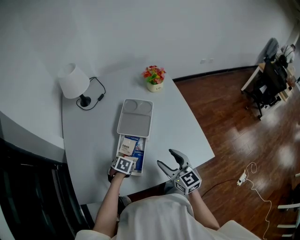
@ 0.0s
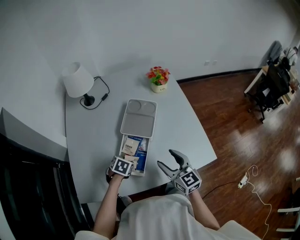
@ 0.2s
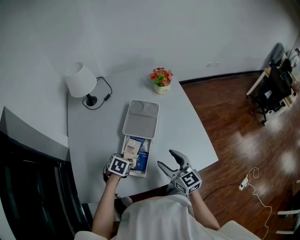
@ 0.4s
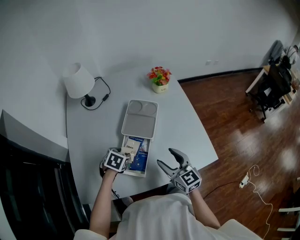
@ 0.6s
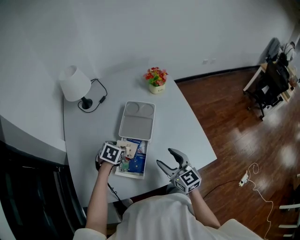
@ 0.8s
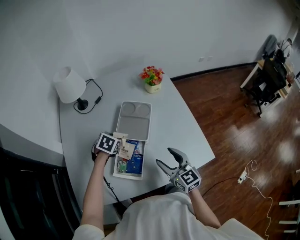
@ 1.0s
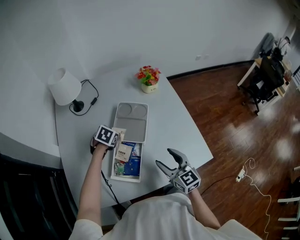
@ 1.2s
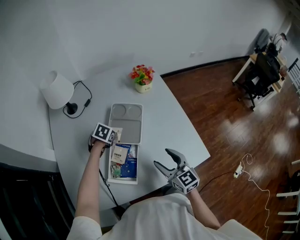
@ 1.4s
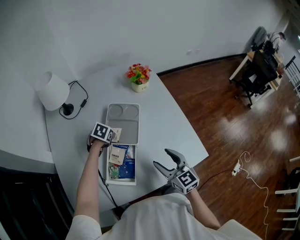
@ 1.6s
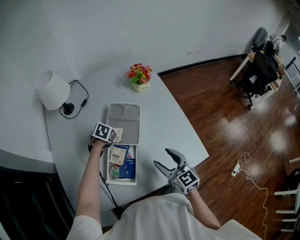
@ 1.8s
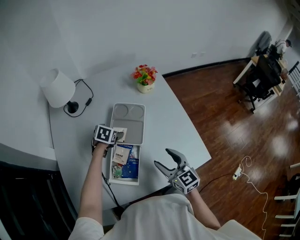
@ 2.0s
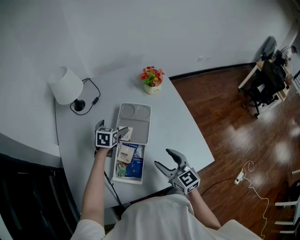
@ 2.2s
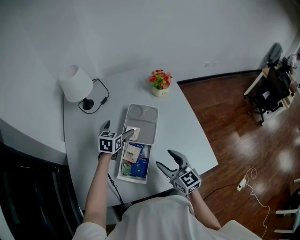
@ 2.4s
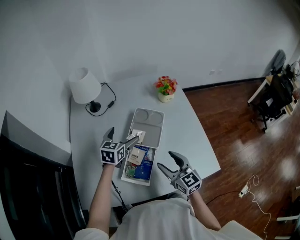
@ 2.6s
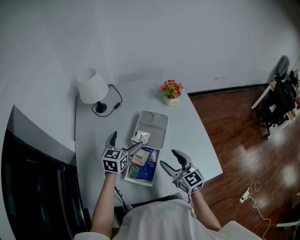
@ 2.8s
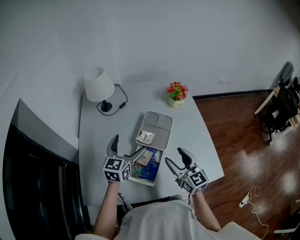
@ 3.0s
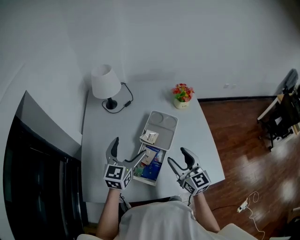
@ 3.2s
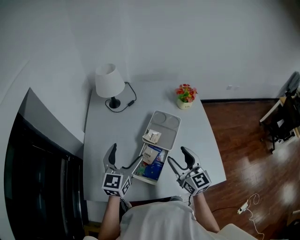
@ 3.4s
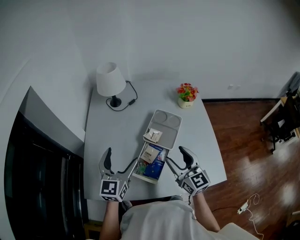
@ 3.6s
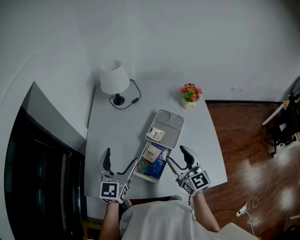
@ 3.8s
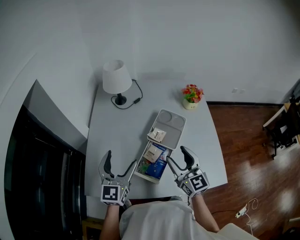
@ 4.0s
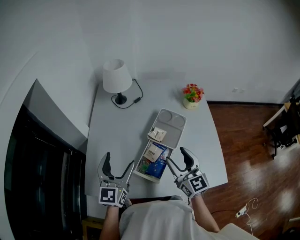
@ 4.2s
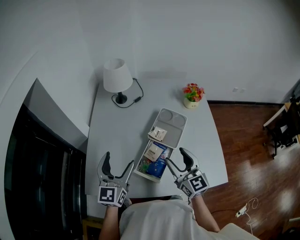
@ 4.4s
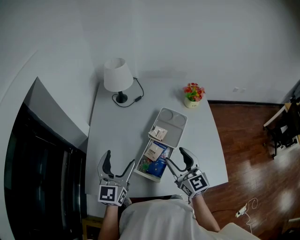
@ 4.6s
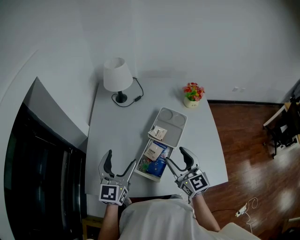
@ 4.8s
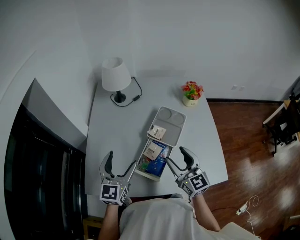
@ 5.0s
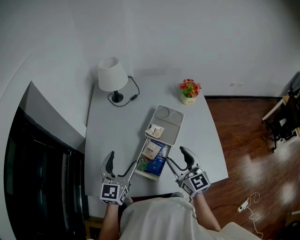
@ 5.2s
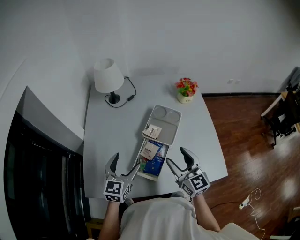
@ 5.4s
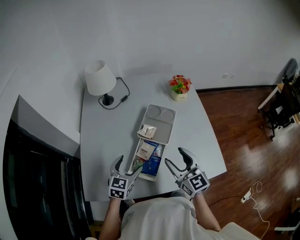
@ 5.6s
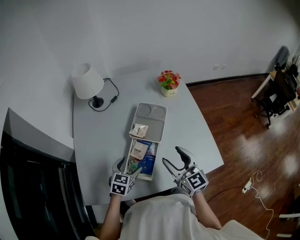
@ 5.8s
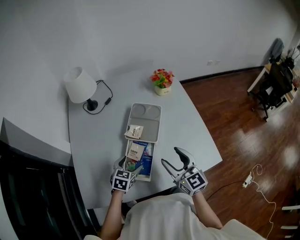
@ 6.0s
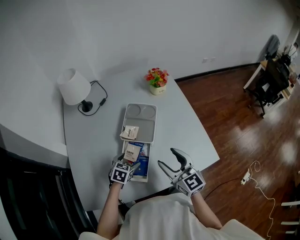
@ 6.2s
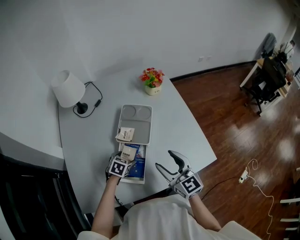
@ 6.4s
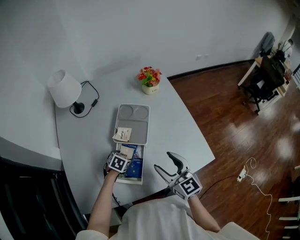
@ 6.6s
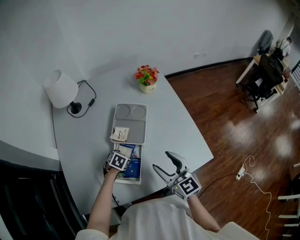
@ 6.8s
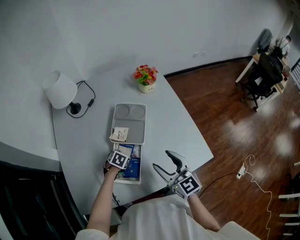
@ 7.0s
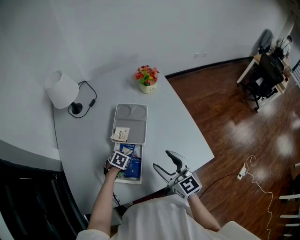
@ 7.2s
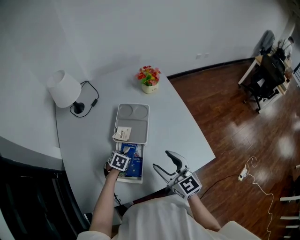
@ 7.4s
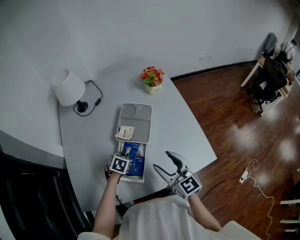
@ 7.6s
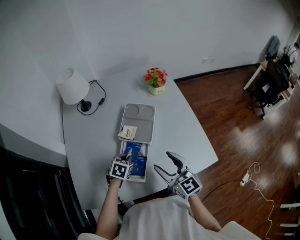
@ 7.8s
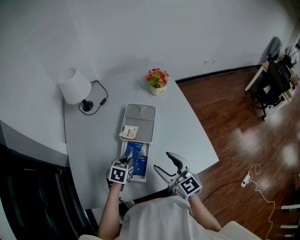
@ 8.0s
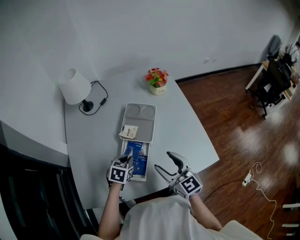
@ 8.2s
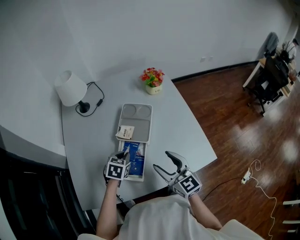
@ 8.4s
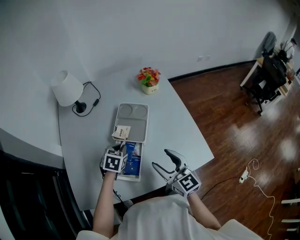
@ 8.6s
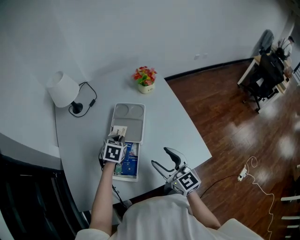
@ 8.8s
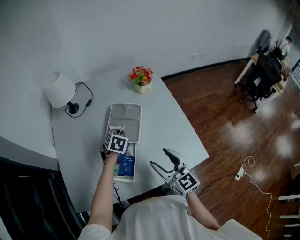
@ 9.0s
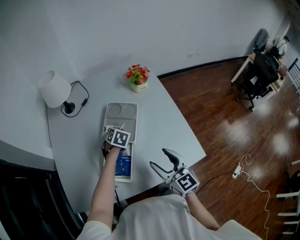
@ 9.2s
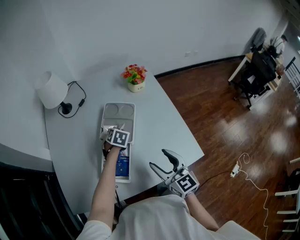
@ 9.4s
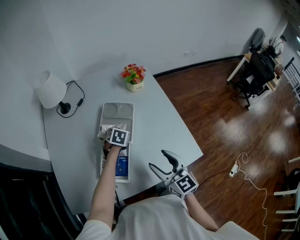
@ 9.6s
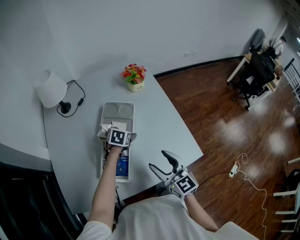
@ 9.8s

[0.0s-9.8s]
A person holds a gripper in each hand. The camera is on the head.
0.0s to 1.4s: The left gripper heads forward, covering approximately 20 cm.
1.4s to 2.8s: The left gripper heads upward and backward, covering some 20 cm, tips its fingers upward by roughly 50 degrees, and opens its fingers. The right gripper shifts approximately 5 cm to the left.
2.8s to 4.2s: The left gripper heads backward, to the left and upward, covering approximately 20 cm, and rotates roughly 30 degrees, while the right gripper heads upward, covering roughly 5 cm.
4.2s to 5.6s: The left gripper travels downward and to the right by roughly 15 cm, and rotates some 30 degrees.
5.6s to 7.0s: The right gripper is displaced to the right by about 5 cm, while the left gripper is displaced downward and forward by about 20 cm, and points its fingers about 40 degrees further downward.
7.0s to 8.4s: The left gripper is displaced upward by approximately 10 cm, swivels roughly 20 degrees, and closes up.
8.4s to 9.8s: The left gripper goes some 15 cm forward and to the right, and opens its fingers.

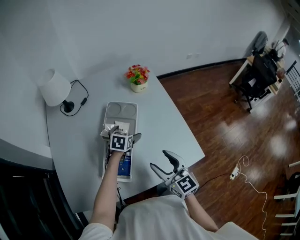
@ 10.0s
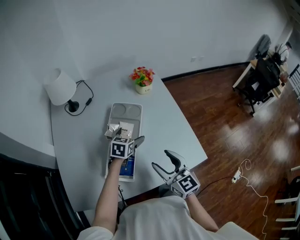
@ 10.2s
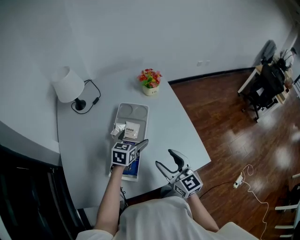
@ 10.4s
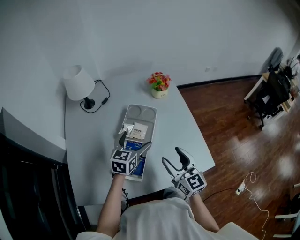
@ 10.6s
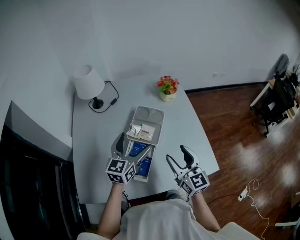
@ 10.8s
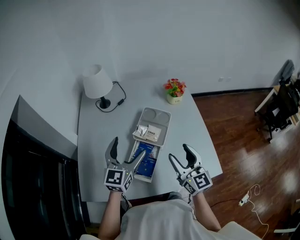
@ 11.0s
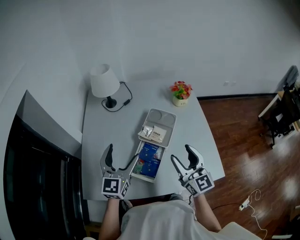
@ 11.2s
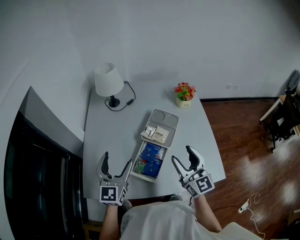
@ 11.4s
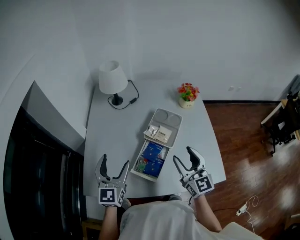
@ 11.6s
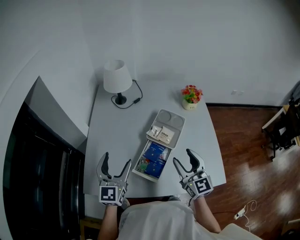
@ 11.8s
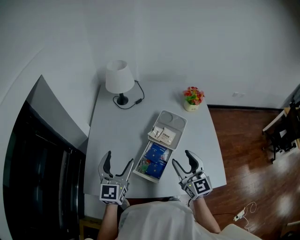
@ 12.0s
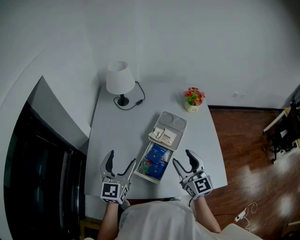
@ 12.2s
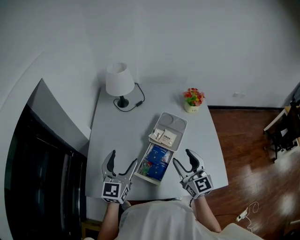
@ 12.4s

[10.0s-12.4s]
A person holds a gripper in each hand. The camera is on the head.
10.0s to 11.2s: The right gripper heads upward and to the left, covering approximately 10 cm. The left gripper moves upward, to the left and backward, some 35 cm, and points its fingers approximately 50 degrees further upward.
11.2s to 12.4s: The left gripper is displaced to the left by roughly 5 cm.

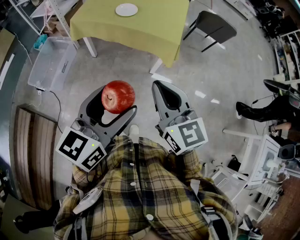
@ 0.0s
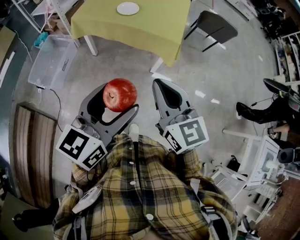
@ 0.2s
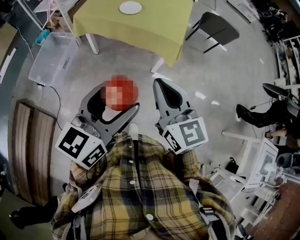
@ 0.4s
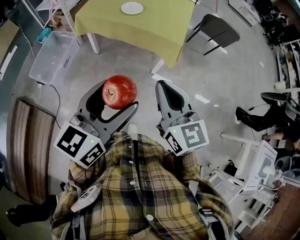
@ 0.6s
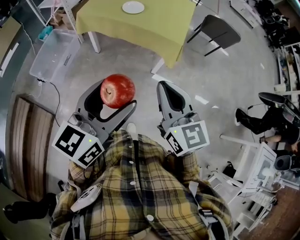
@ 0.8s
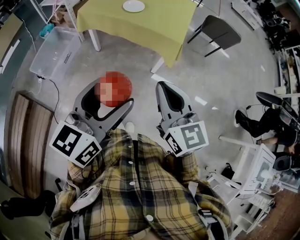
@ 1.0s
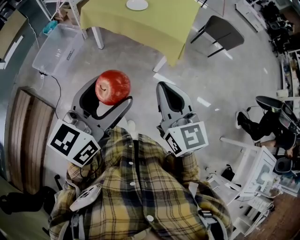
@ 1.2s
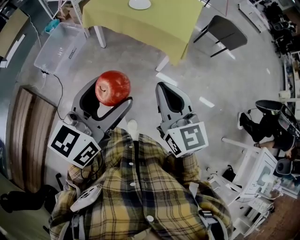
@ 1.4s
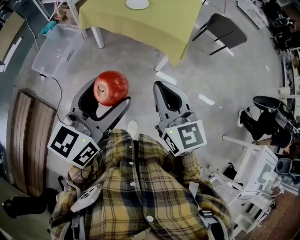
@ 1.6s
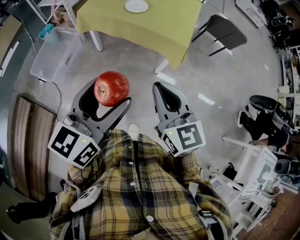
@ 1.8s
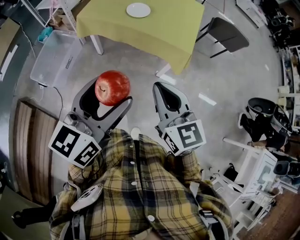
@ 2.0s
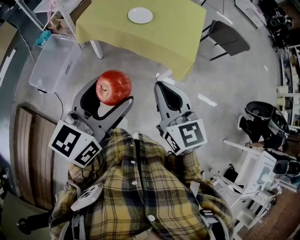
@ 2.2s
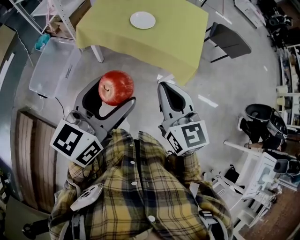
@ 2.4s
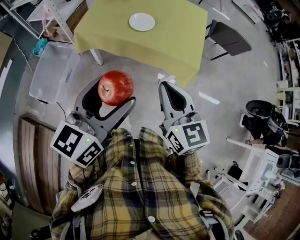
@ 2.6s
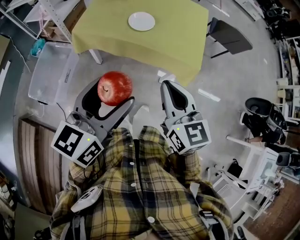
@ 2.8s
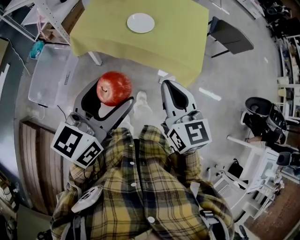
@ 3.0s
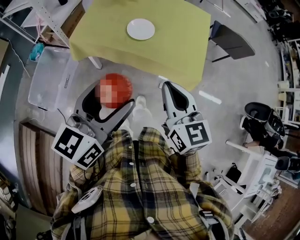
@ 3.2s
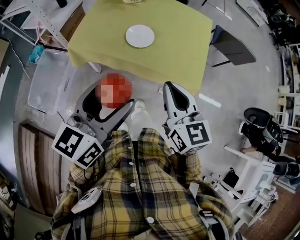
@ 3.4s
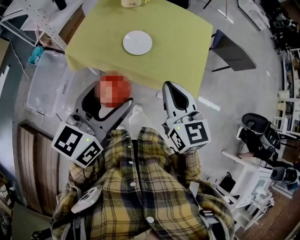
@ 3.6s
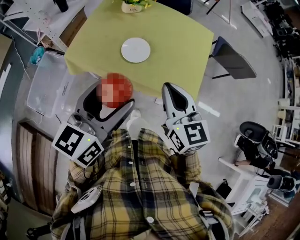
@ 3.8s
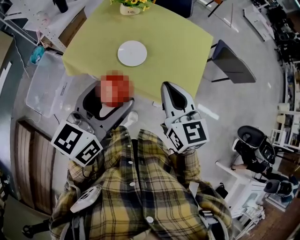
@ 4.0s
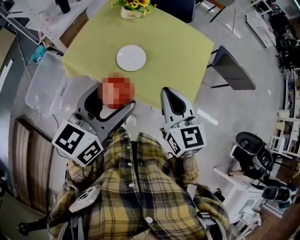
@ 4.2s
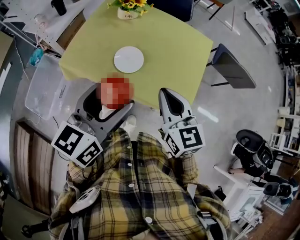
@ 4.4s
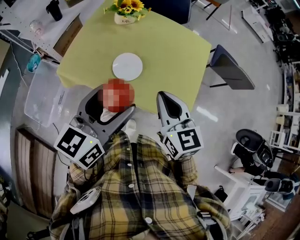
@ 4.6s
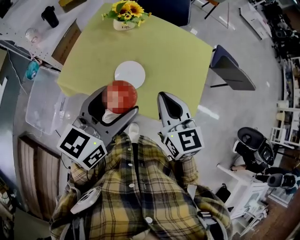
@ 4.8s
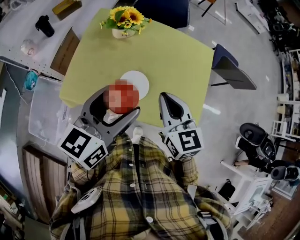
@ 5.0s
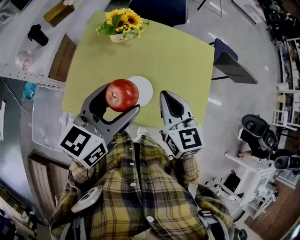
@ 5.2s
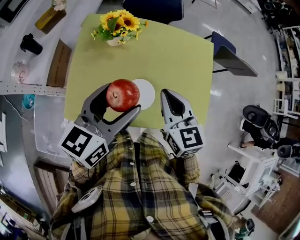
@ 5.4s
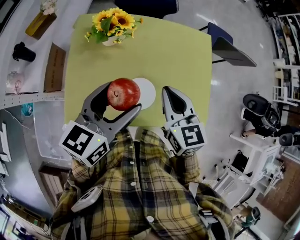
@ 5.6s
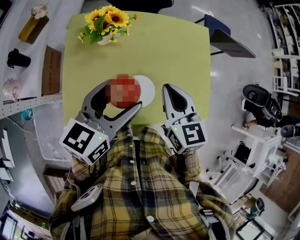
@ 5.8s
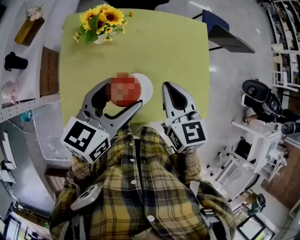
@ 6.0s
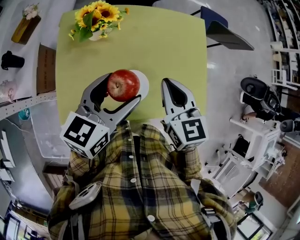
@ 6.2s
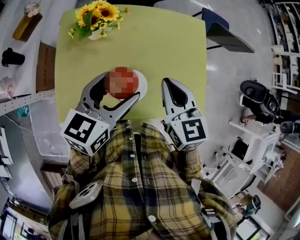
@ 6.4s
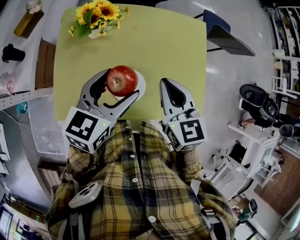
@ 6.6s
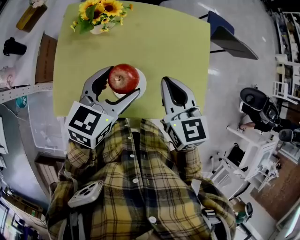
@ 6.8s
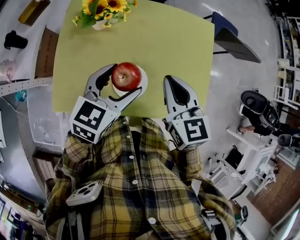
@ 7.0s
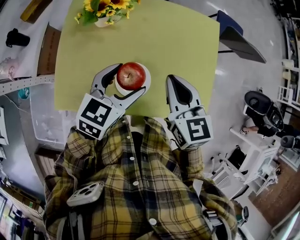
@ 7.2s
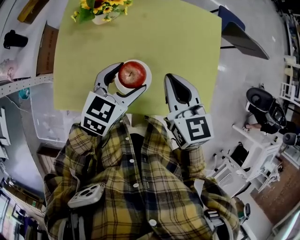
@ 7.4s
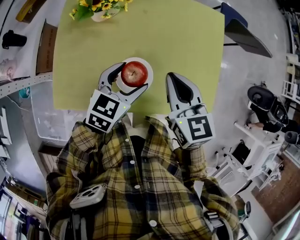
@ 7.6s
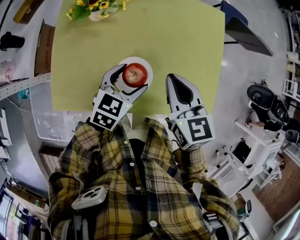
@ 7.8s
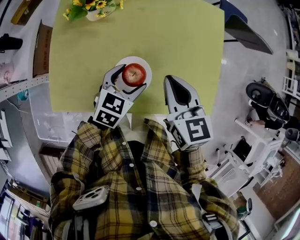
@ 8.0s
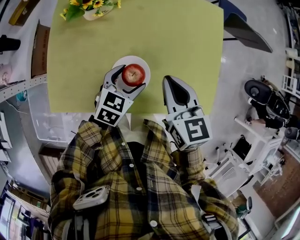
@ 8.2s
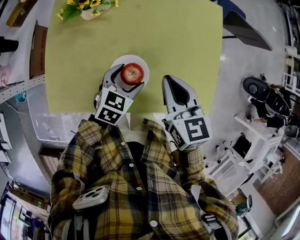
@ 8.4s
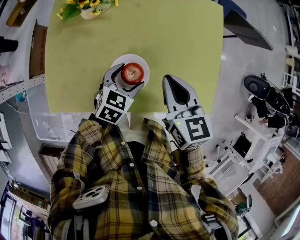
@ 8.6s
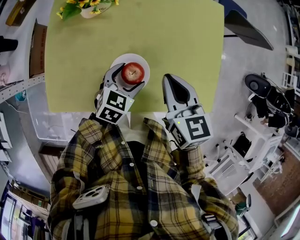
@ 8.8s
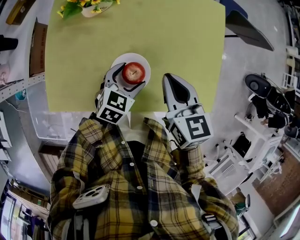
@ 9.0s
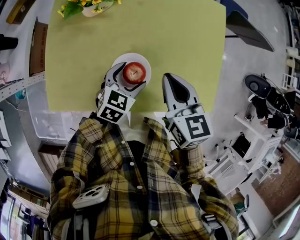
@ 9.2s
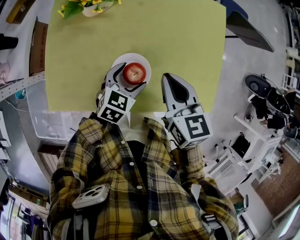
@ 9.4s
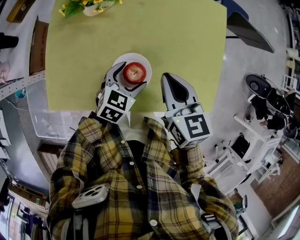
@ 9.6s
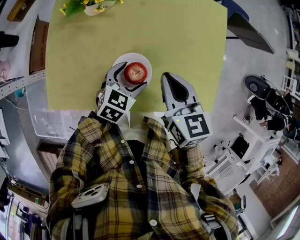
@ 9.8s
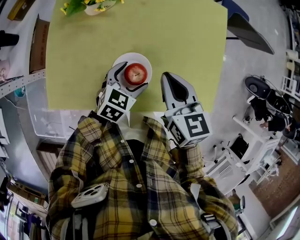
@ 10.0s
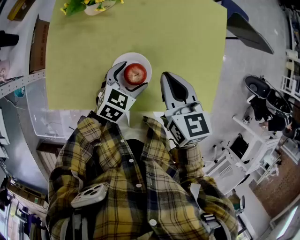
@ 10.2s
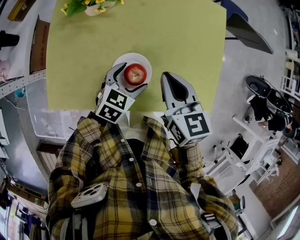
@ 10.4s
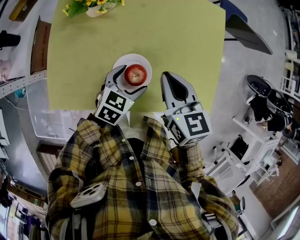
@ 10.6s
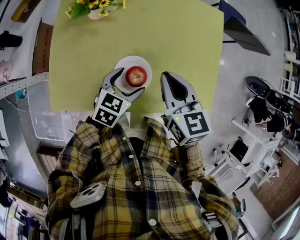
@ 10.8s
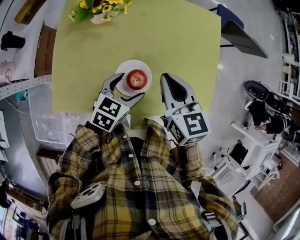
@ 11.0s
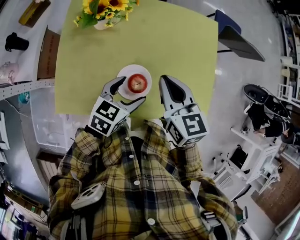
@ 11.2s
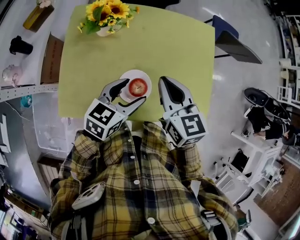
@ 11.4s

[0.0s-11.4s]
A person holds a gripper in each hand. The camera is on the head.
0.0s to 1.4s: The grippers make only small movements.
1.4s to 2.8s: Both grippers move forward and to the left, approximately 25 cm.
2.8s to 4.2s: Both grippers move forward, some 25 cm.
4.2s to 5.6s: Both grippers travel together forward and to the left, some 25 cm. The right gripper rotates about 20 degrees. The left gripper rotates about 20 degrees.
5.6s to 7.2s: The left gripper moves downward and to the right, some 10 cm. Meanwhile the right gripper ends up about 5 cm from where it was.
7.2s to 8.6s: The right gripper heads downward, covering approximately 5 cm, while the left gripper is displaced downward by roughly 15 cm.
8.6s to 10.0s: The grippers make only small movements.
10.0s to 11.4s: The right gripper travels upward by roughly 5 cm, while the left gripper goes approximately 15 cm upward.
